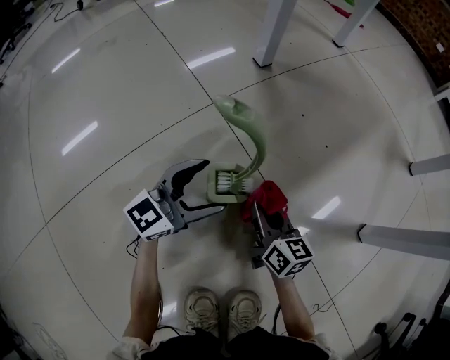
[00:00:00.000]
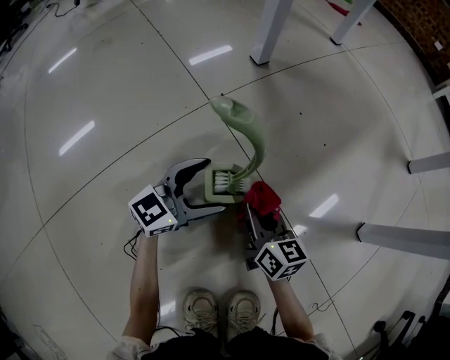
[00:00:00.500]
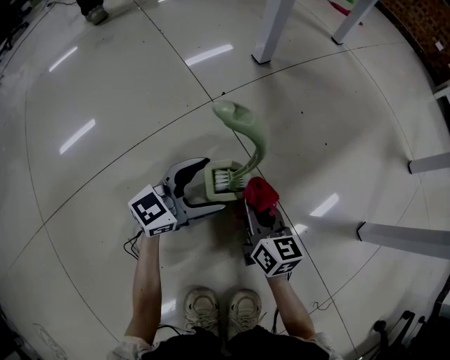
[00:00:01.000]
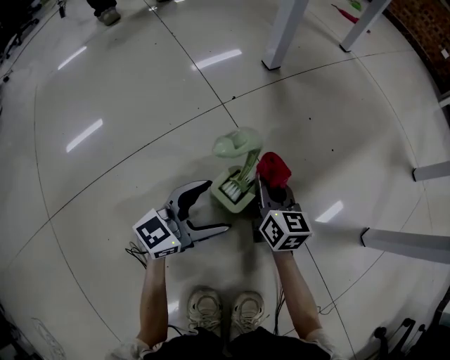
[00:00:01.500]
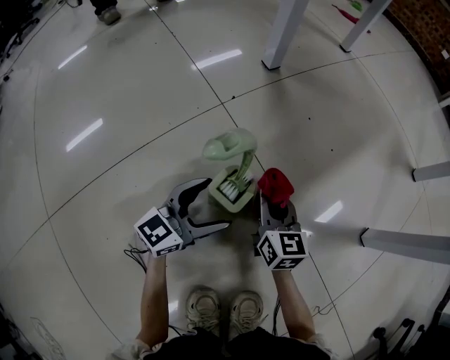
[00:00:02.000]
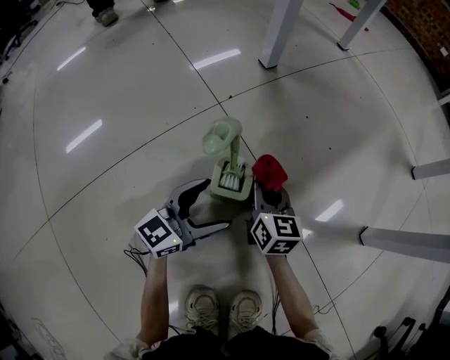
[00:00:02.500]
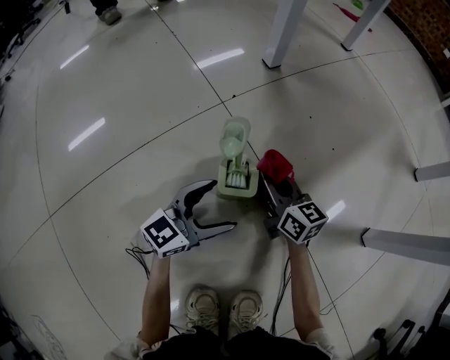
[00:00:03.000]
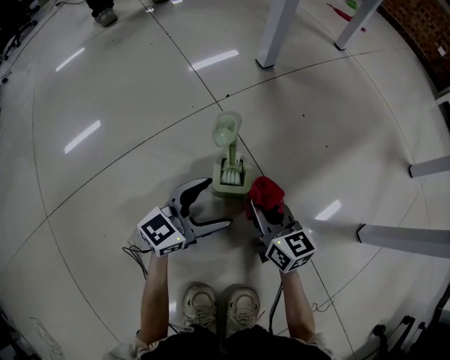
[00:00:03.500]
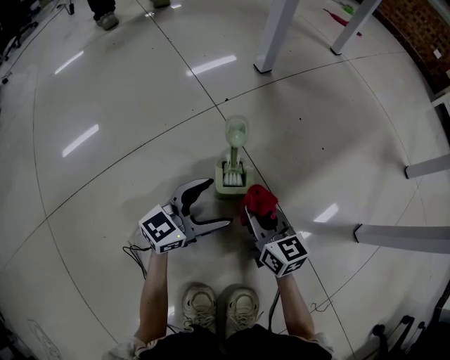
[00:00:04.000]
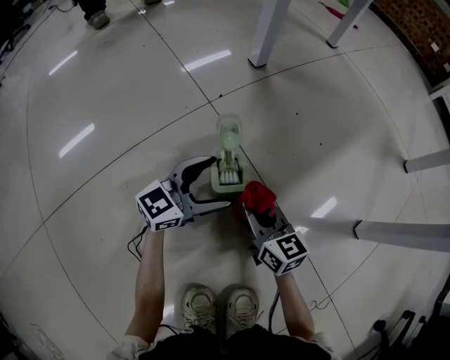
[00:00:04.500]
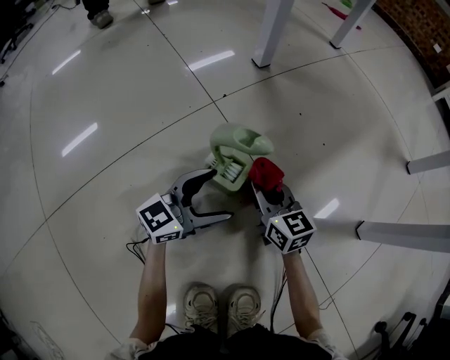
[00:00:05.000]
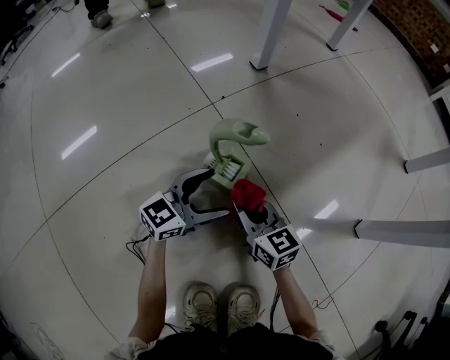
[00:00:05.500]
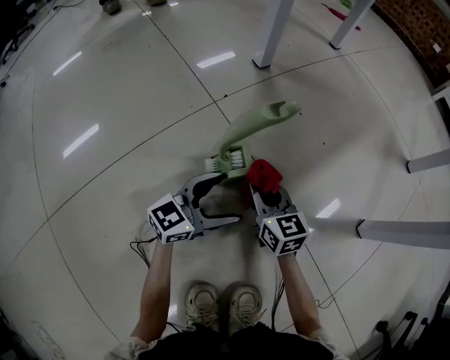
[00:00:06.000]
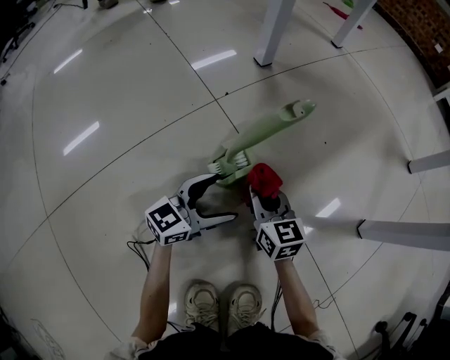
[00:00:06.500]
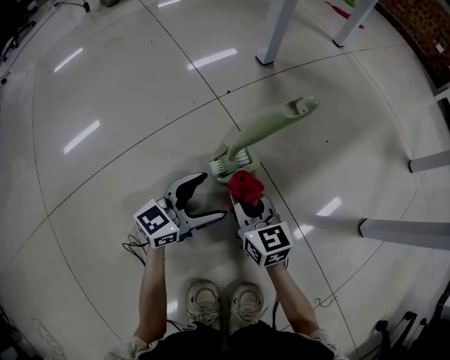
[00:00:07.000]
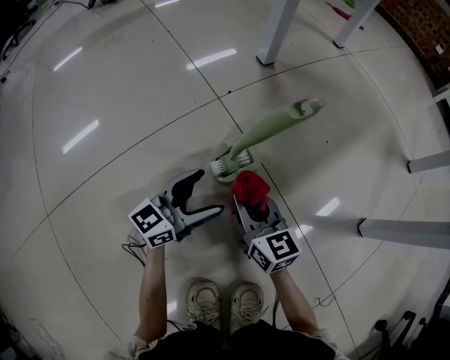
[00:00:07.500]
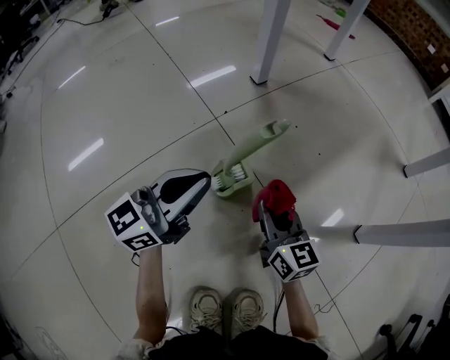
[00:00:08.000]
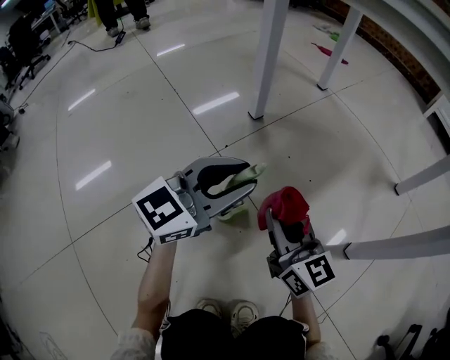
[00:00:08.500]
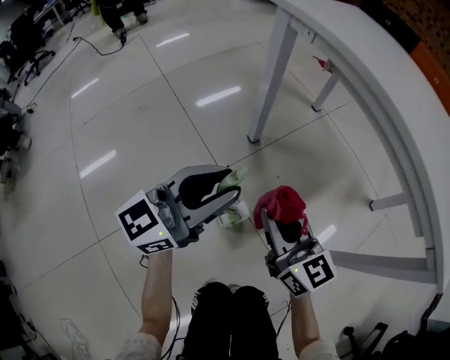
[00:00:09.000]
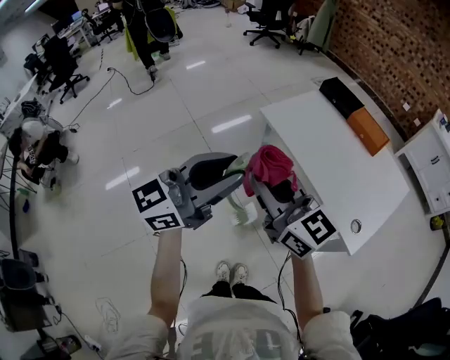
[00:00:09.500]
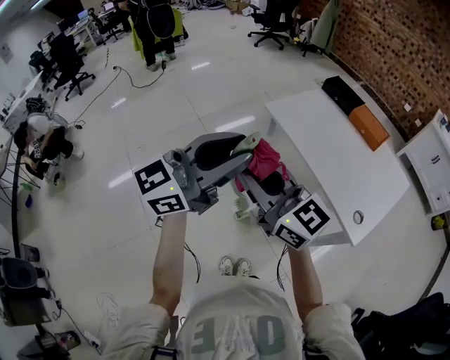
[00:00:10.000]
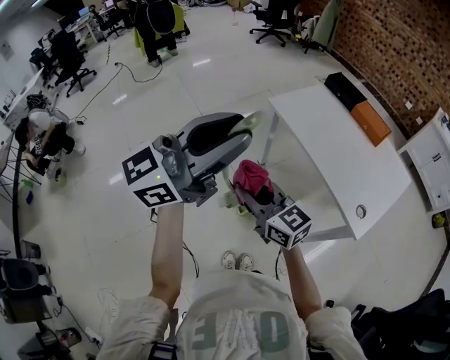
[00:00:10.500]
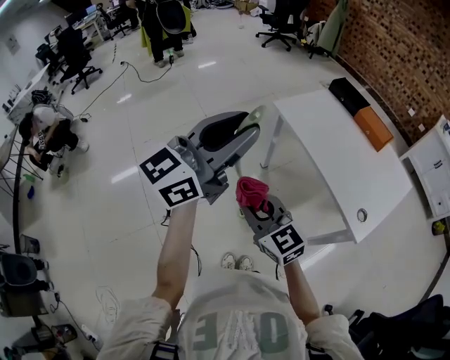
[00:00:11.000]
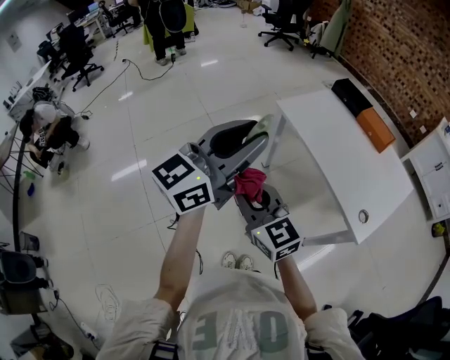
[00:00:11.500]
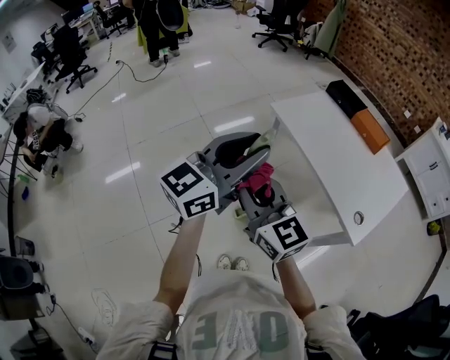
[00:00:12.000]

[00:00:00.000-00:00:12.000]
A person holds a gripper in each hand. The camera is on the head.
00:00:02.000 to 00:00:04.000: The right gripper travels backward by approximately 5 cm.
00:00:04.000 to 00:00:06.000: The right gripper swings forward and backward, about 5 cm each way, with 2 reversals.
00:00:06.000 to 00:00:08.000: The right gripper heads upward, covering approximately 5 cm. Meanwhile the left gripper heads upward and to the left, covering about 20 cm, and closes its fingers.
00:00:08.000 to 00:00:10.000: Both grippers travel together upward, approximately 1 m. The right gripper turns by roughly 40 degrees.

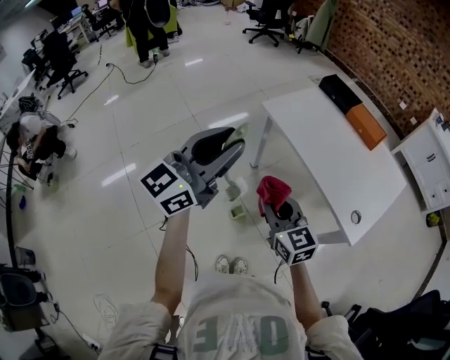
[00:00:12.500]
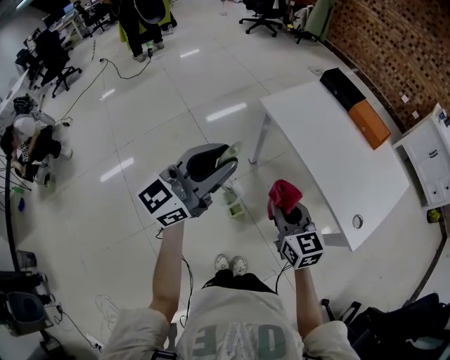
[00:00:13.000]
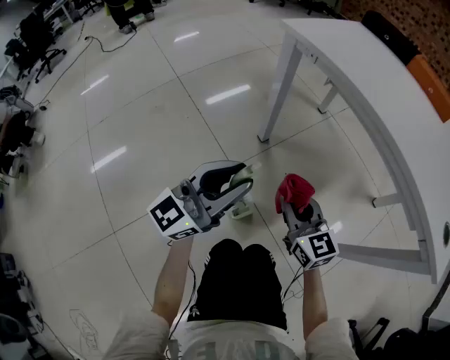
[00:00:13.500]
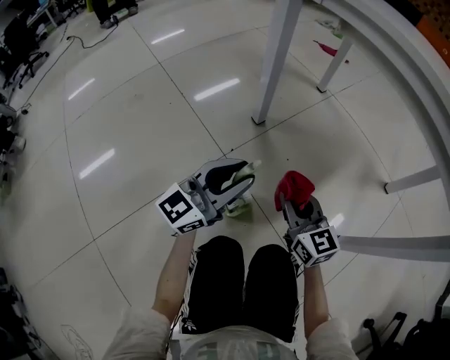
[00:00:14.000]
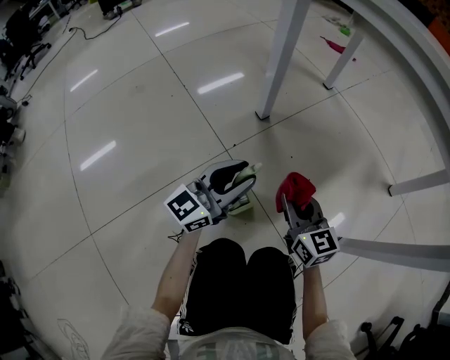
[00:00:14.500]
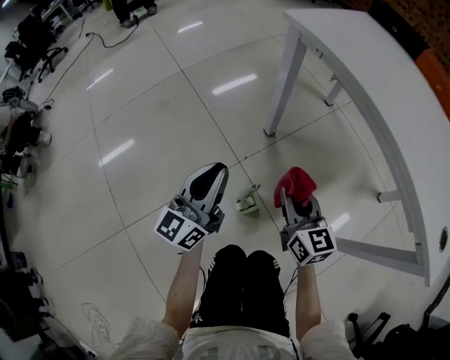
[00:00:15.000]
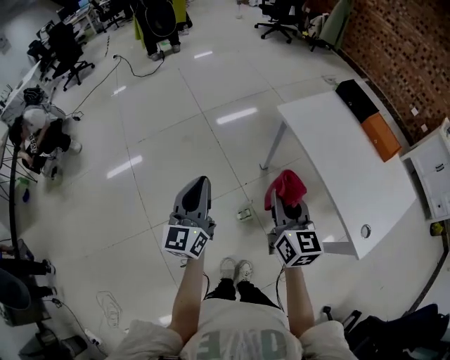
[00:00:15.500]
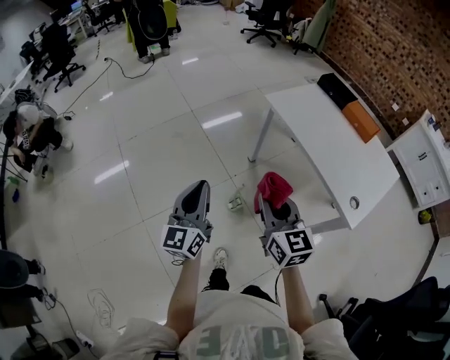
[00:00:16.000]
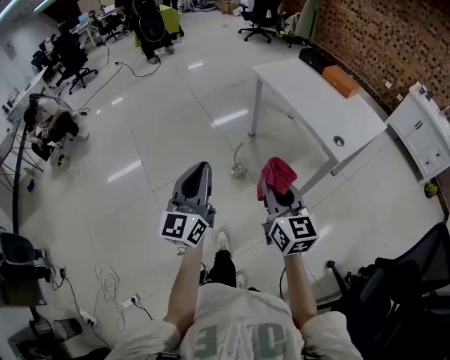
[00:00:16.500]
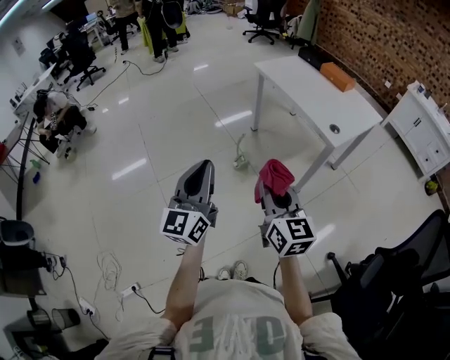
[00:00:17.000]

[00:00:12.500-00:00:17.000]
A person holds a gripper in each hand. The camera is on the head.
00:00:12.500 to 00:00:14.500: Both grippers move downward, about 70 cm.
00:00:14.500 to 00:00:17.000: The two grippers travel together, backward, roughly 60 cm. The grippers both shift upward by roughly 70 cm. The left gripper swivels roughly 40 degrees.

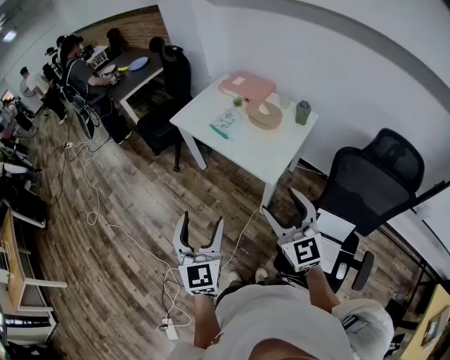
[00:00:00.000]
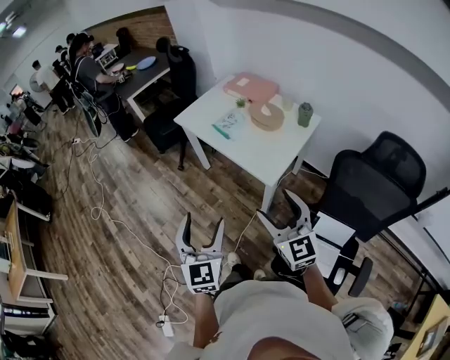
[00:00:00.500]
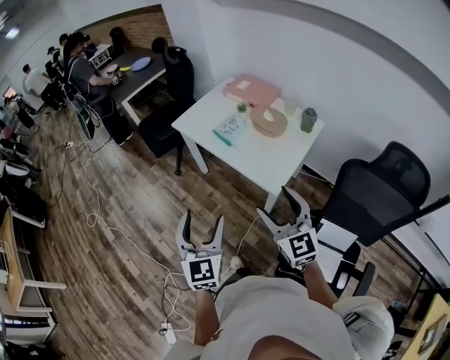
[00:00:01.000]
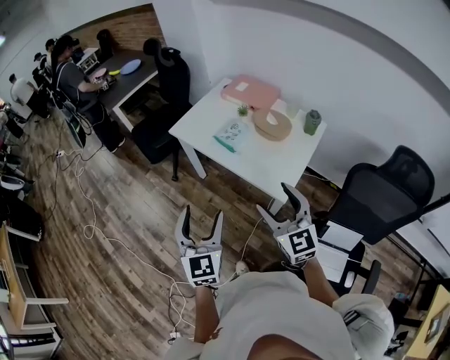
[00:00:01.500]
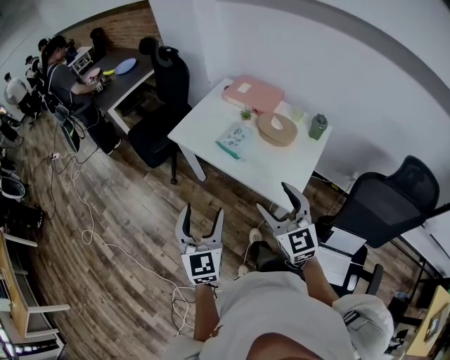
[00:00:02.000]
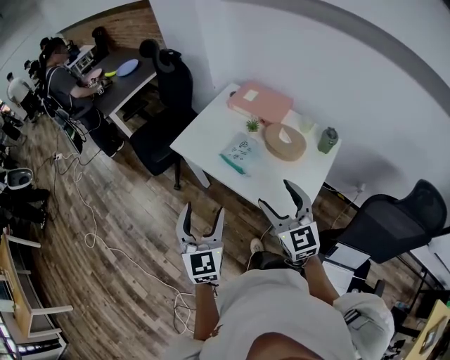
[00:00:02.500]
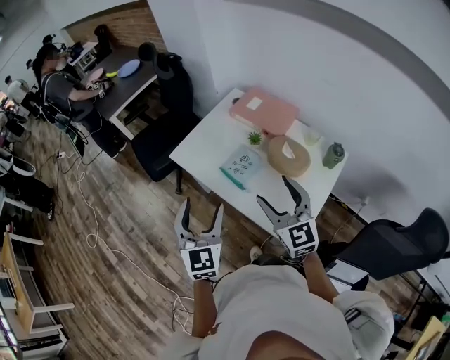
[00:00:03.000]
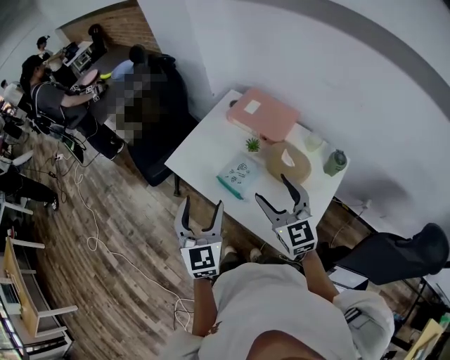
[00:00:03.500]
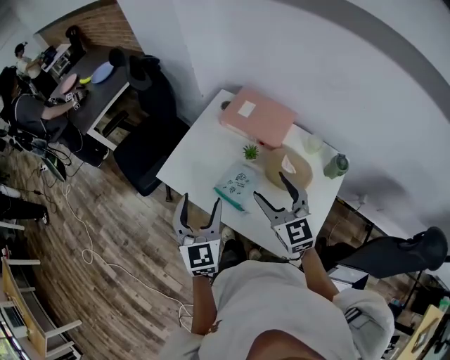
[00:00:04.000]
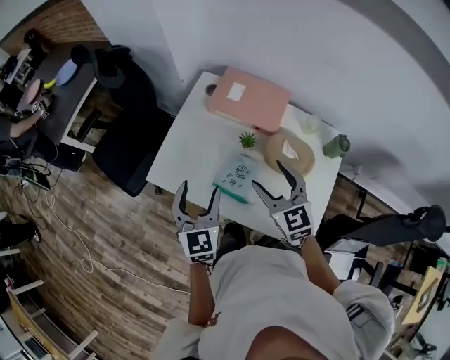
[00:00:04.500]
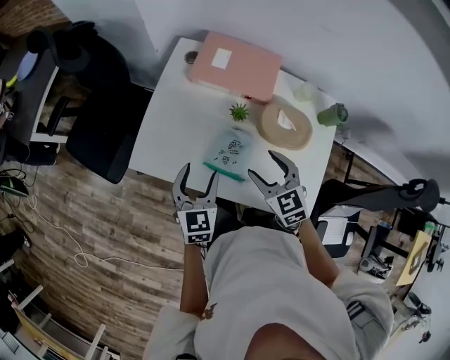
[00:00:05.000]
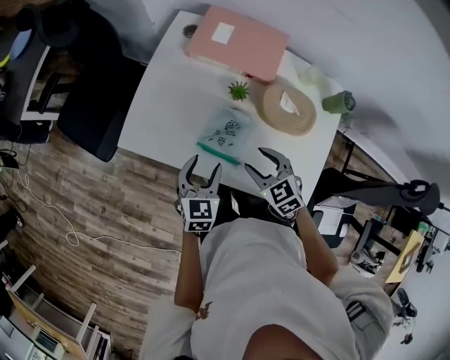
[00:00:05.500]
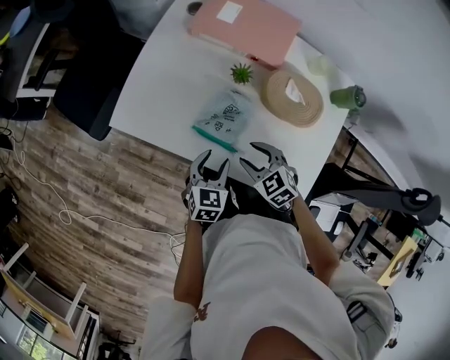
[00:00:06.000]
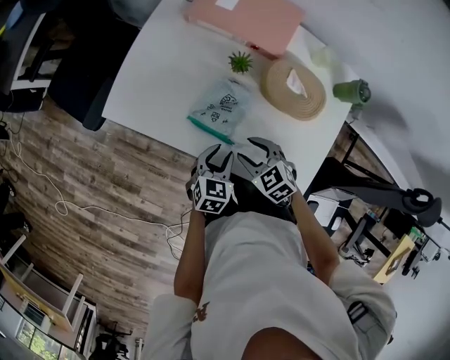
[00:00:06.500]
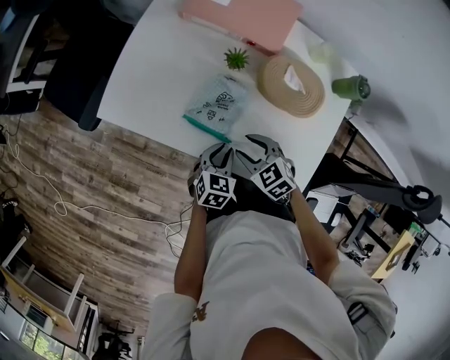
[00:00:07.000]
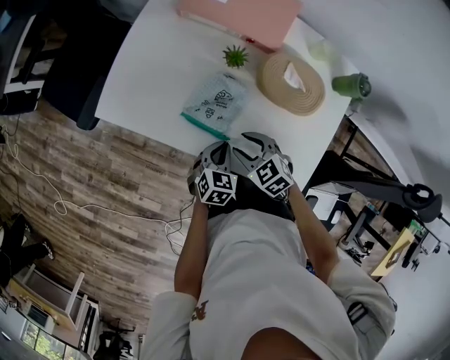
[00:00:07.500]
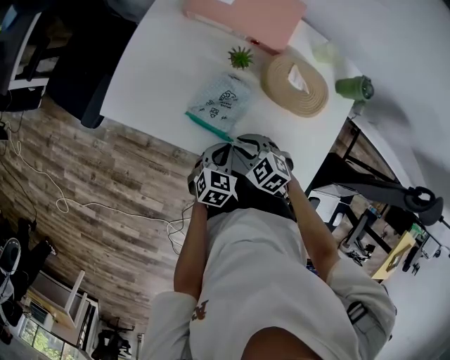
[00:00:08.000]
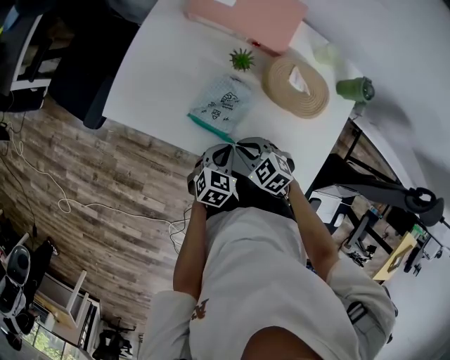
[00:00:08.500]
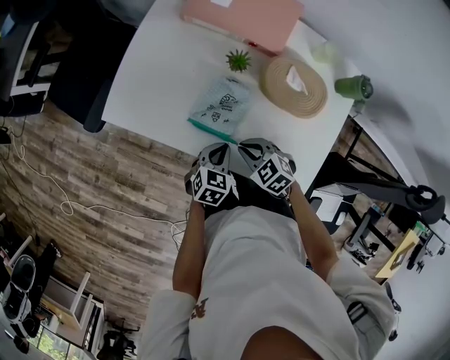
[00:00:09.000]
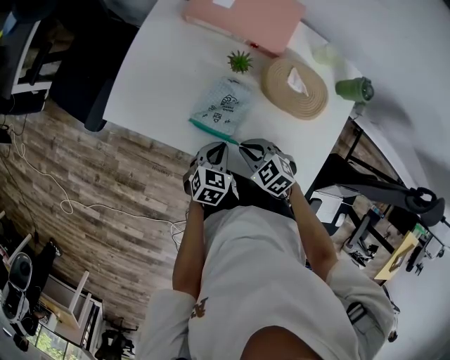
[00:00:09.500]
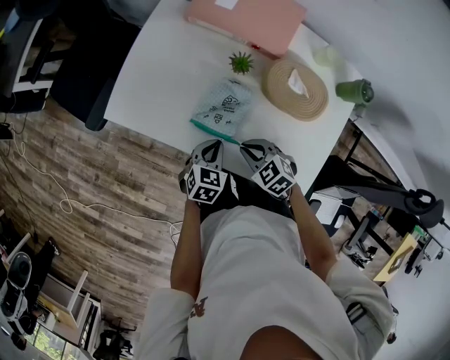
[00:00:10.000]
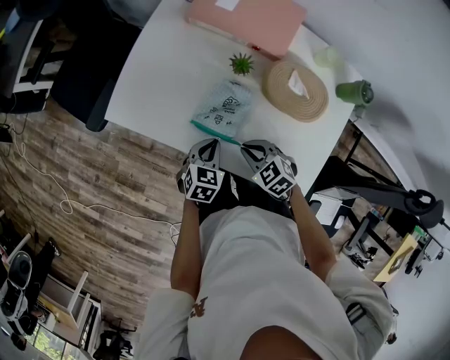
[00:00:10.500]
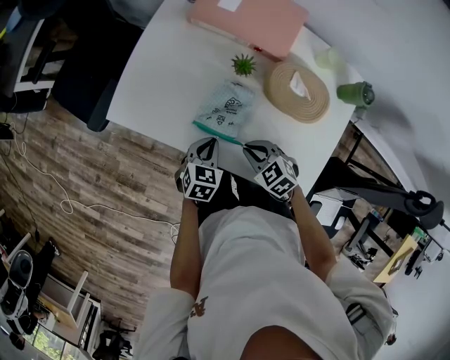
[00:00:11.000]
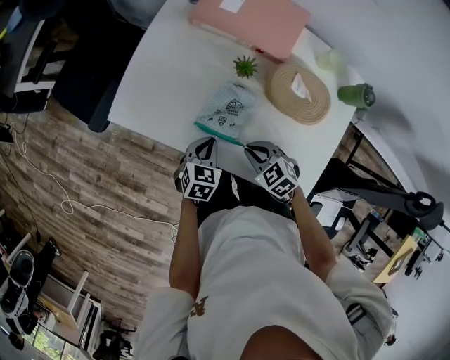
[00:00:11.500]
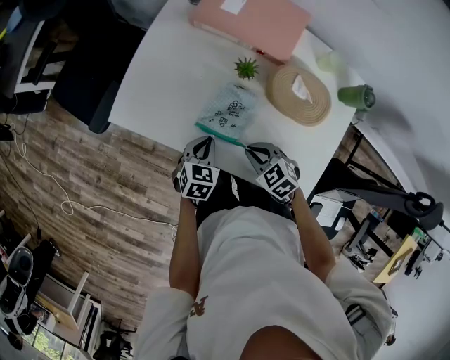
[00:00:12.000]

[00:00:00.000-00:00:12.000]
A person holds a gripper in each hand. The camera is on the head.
00:00:00.000 to 00:00:02.000: Both grippers travel together forward, approximately 20 cm.
00:00:02.000 to 00:00:04.000: The two grippers go approximately 35 cm forward.
00:00:04.000 to 00:00:06.000: The grippers both shift downward by about 30 cm. The left gripper tilts its fingers roughly 30 degrees downward. The right gripper tilts its fingers some 40 degrees downward.
00:00:06.000 to 00:00:08.000: The left gripper moves downward, approximately 5 cm, and closes its fingers. The right gripper moves roughly 5 cm.
00:00:08.000 to 00:00:10.000: The grippers move only a little.
00:00:10.000 to 00:00:12.000: The grippers move only a little.
